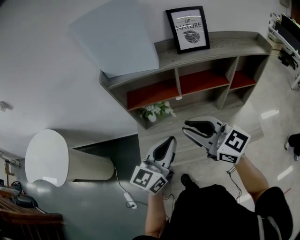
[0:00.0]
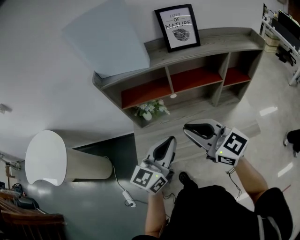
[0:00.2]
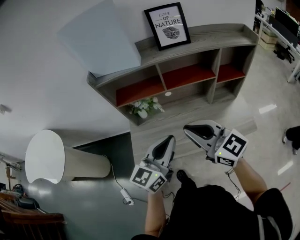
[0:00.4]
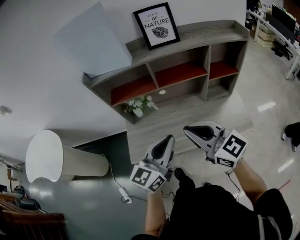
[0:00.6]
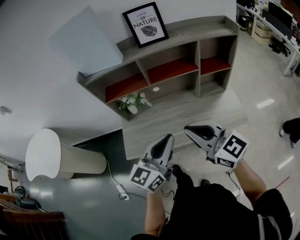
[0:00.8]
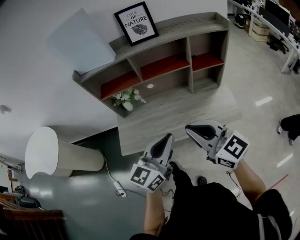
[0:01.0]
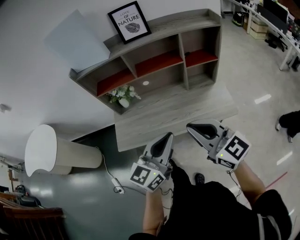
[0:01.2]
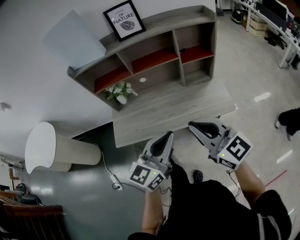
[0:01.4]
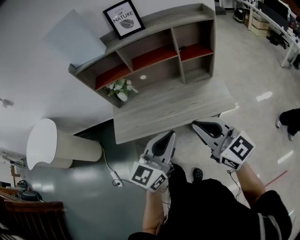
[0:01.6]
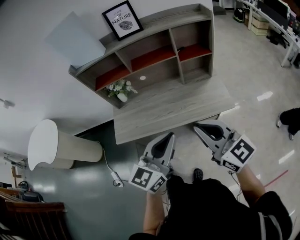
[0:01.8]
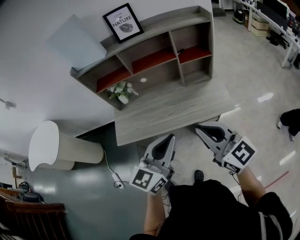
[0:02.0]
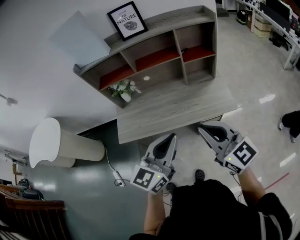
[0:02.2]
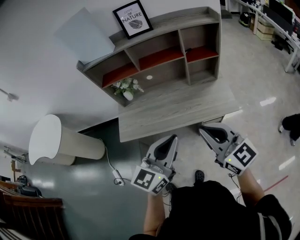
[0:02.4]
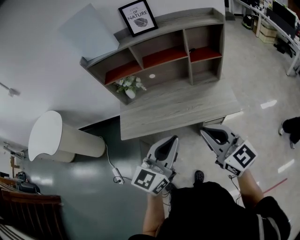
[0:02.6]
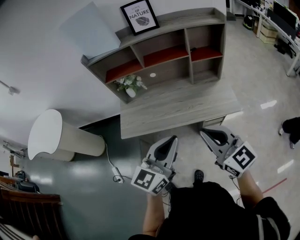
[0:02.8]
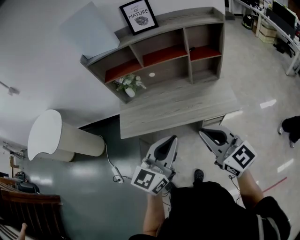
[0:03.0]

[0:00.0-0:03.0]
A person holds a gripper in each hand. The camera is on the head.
0.0 to 1.6 s: Both grippers travel together to the right and backward, about 35 cm.
1.6 to 3.0 s: The left gripper shifts by roughly 5 cm.

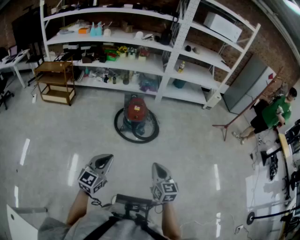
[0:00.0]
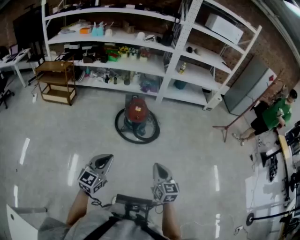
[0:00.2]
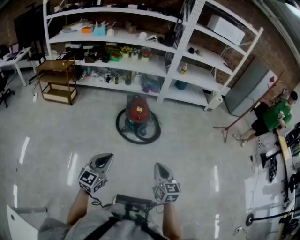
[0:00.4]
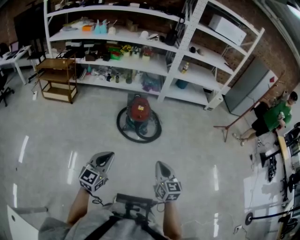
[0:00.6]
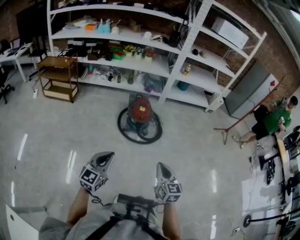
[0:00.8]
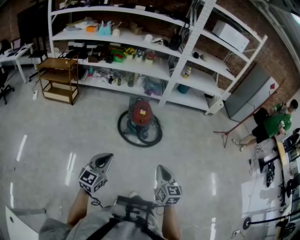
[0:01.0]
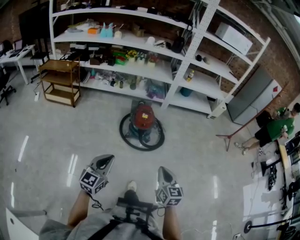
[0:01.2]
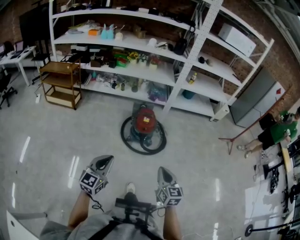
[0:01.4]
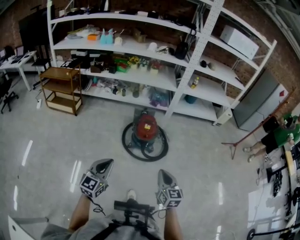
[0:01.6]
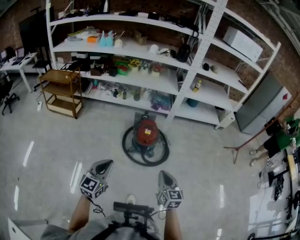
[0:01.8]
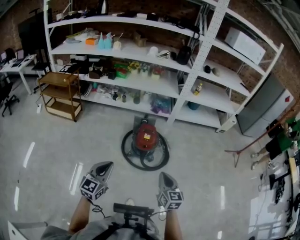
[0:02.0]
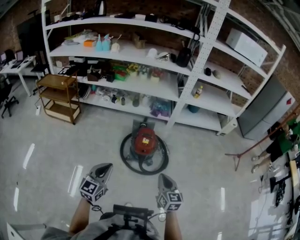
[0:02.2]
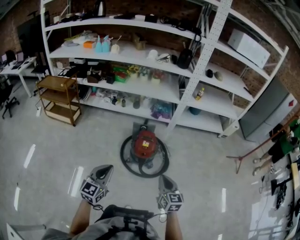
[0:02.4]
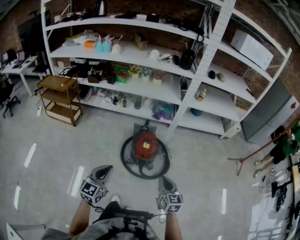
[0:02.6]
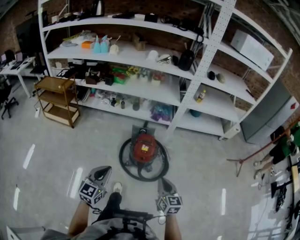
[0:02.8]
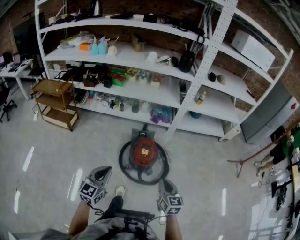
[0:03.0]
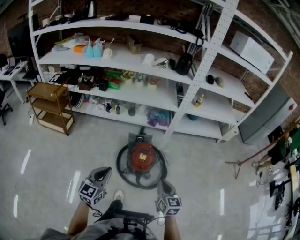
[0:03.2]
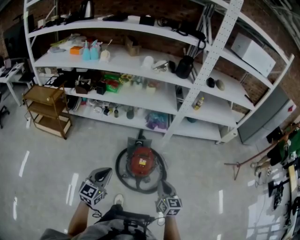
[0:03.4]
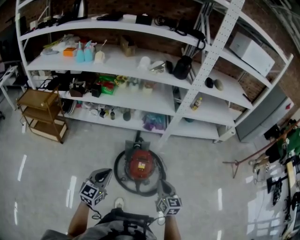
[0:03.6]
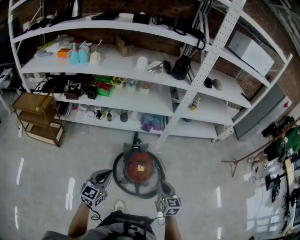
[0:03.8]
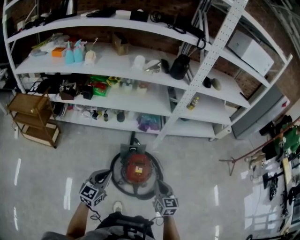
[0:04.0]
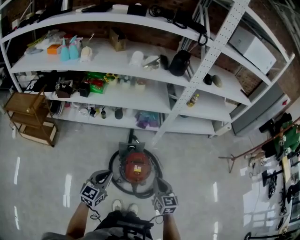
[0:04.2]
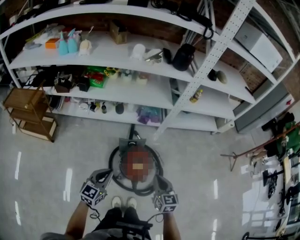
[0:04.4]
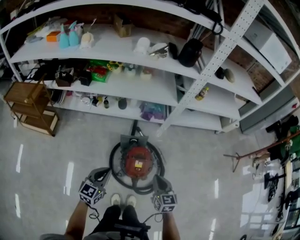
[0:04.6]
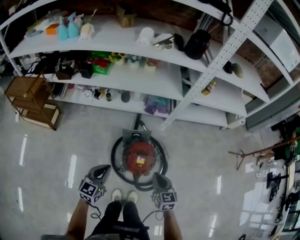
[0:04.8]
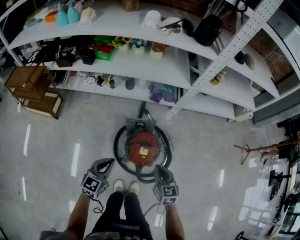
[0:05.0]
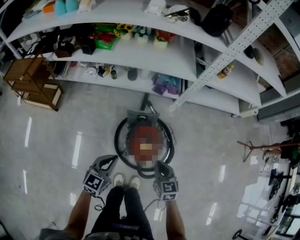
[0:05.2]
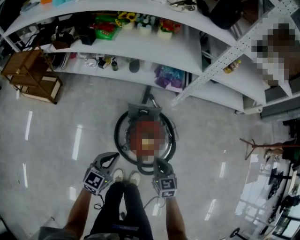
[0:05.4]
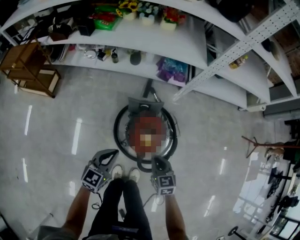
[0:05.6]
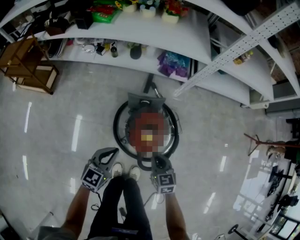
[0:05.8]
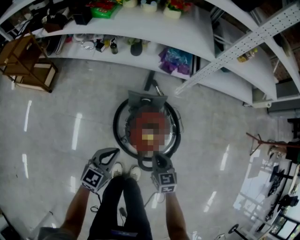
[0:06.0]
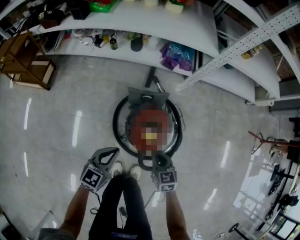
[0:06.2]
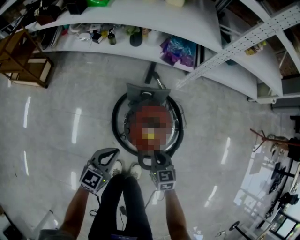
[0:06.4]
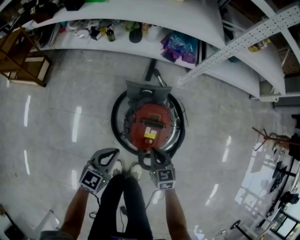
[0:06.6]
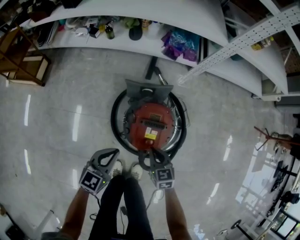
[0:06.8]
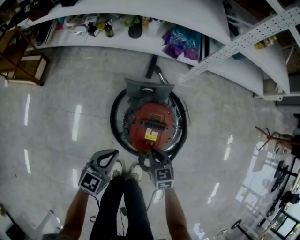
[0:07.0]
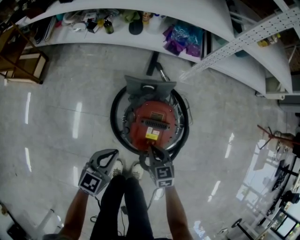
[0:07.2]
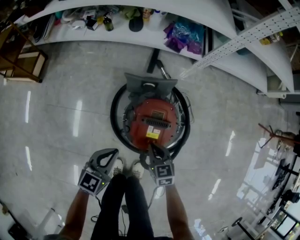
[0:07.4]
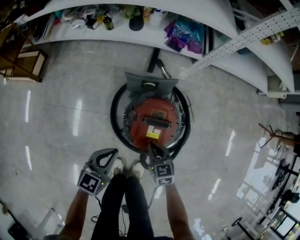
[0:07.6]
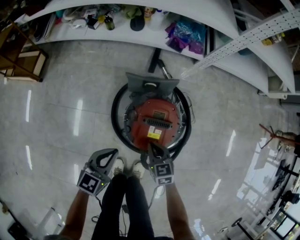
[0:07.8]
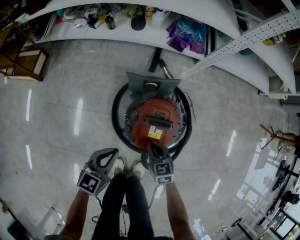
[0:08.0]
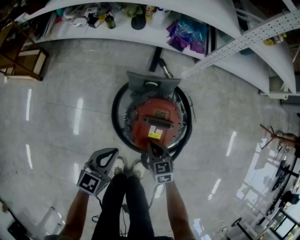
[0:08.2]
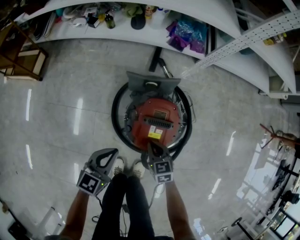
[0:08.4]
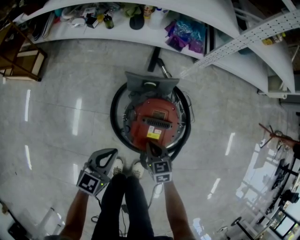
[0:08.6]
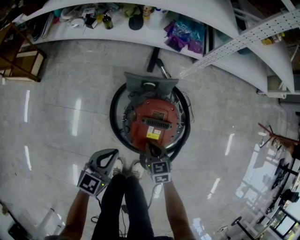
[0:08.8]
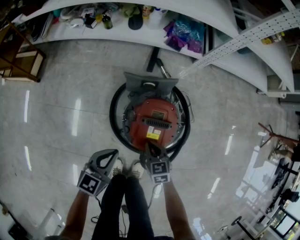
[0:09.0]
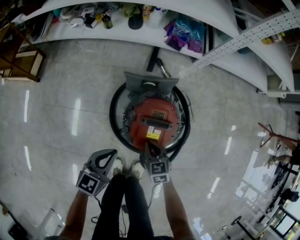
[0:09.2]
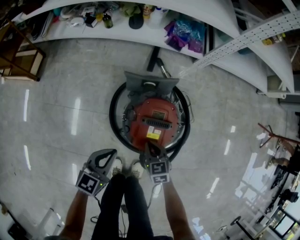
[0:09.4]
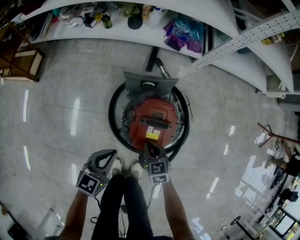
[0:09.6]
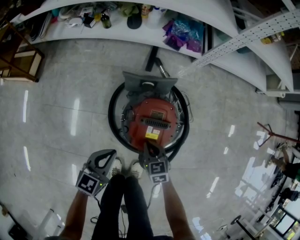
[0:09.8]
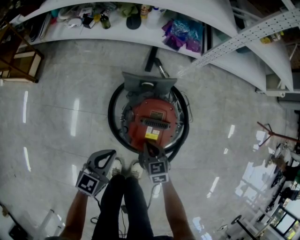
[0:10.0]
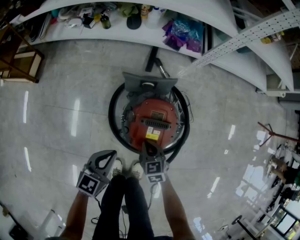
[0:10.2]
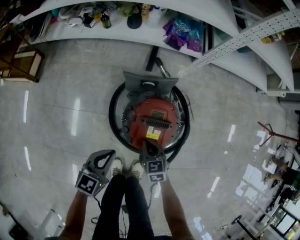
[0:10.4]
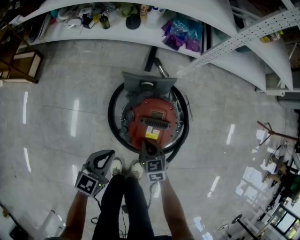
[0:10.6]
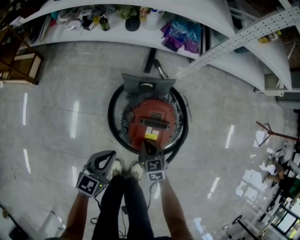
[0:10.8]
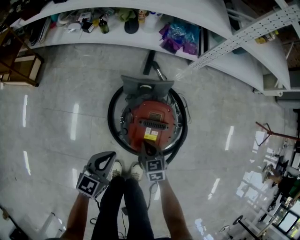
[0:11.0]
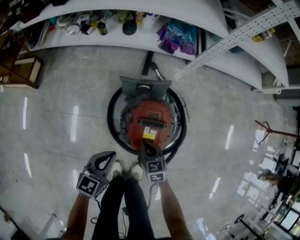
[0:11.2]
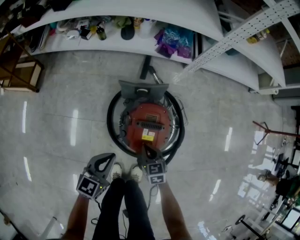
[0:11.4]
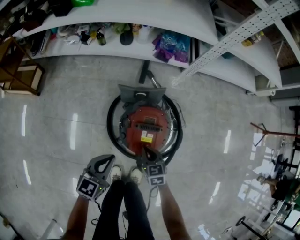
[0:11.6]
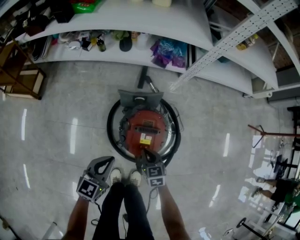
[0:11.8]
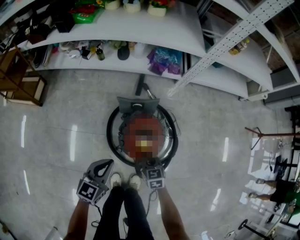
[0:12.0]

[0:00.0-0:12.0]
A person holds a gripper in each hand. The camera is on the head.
0.0 to 1.6 s: Both grippers move forward and to the left, roughly 20 cm.
1.6 to 3.0 s: Both grippers travel together forward, about 30 cm.
3.0 to 4.4 s: Both grippers move forward, roughly 25 cm.
4.4 to 6.0 s: The grippers both shift downward by about 30 cm. The right gripper rotates some 20 degrees.
6.0 to 7.6 s: The grippers both shift downward by roughly 15 cm.
7.6 to 9.0 s: There are only small adjustments of the grippers.
9.0 to 10.4 s: Both grippers stay about where they are.
10.4 to 12.0 s: The two grippers go about 10 cm upward.

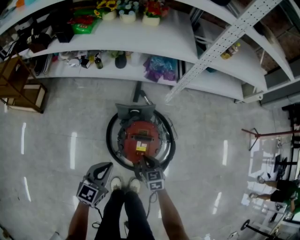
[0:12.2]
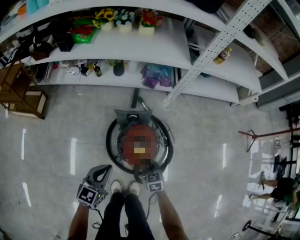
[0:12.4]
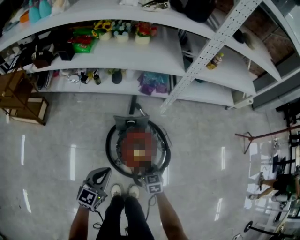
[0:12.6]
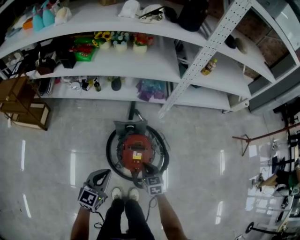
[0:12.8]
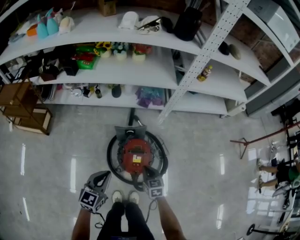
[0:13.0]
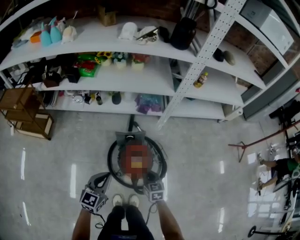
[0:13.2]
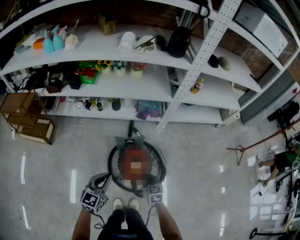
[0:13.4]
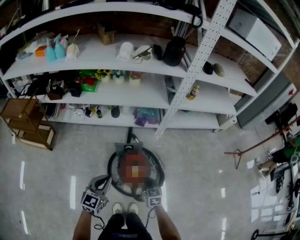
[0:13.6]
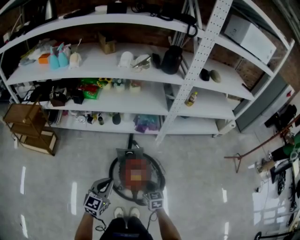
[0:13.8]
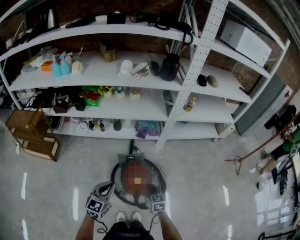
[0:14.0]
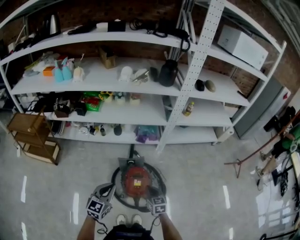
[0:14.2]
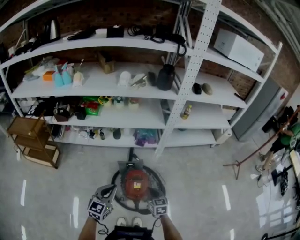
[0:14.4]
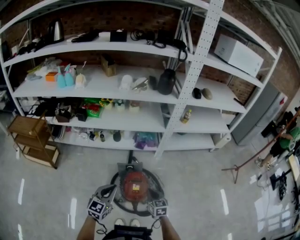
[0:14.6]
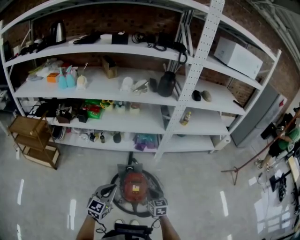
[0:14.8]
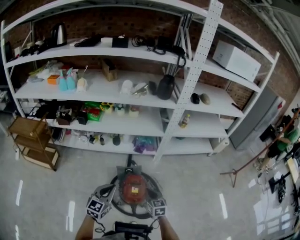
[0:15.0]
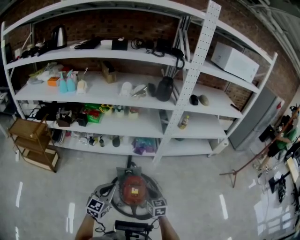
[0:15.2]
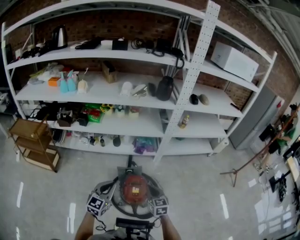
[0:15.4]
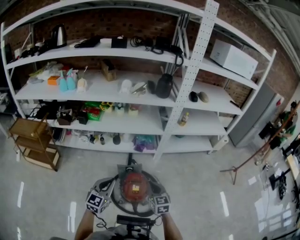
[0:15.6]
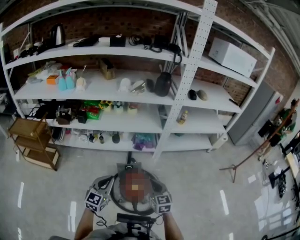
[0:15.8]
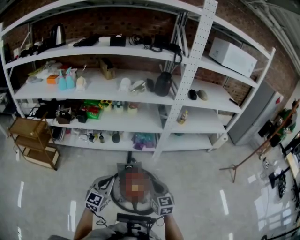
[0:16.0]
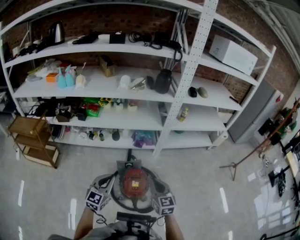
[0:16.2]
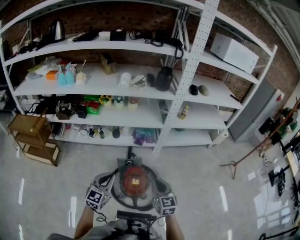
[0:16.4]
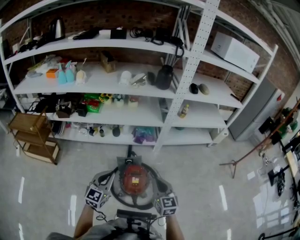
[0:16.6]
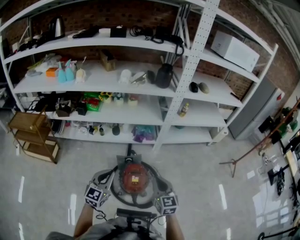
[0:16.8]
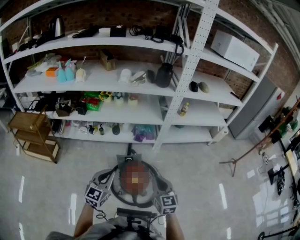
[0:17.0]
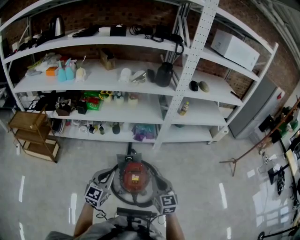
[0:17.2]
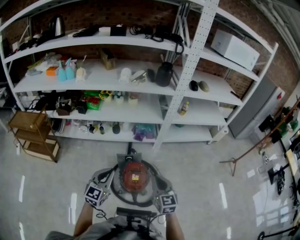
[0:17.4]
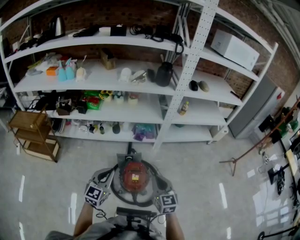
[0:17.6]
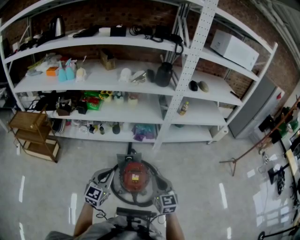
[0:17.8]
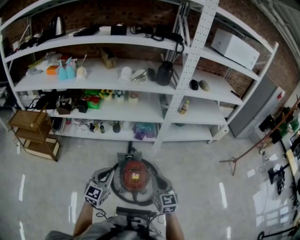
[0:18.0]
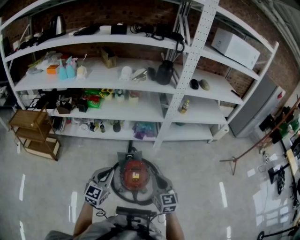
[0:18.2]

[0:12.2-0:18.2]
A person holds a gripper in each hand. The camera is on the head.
12.2 to 13.8 s: The grippers both shift upward by roughly 25 cm.
13.8 to 15.2 s: Both grippers travel together upward, roughly 10 cm.
15.2 to 16.6 s: The right gripper travels upward by roughly 15 cm.
16.6 to 18.2 s: The grippers stay close to where they were, moving slightly.

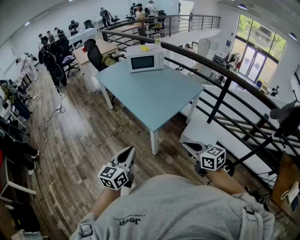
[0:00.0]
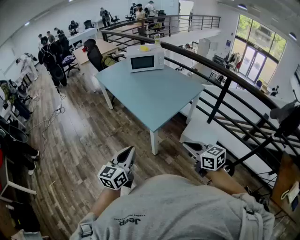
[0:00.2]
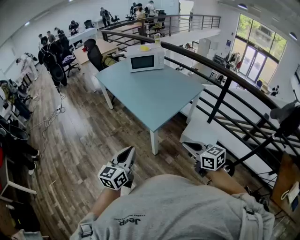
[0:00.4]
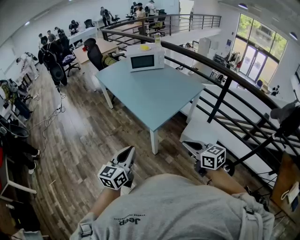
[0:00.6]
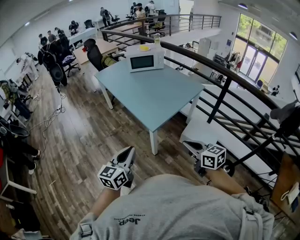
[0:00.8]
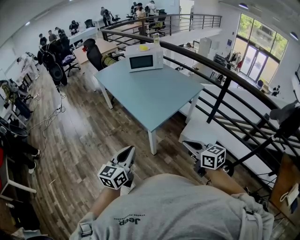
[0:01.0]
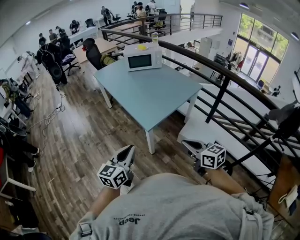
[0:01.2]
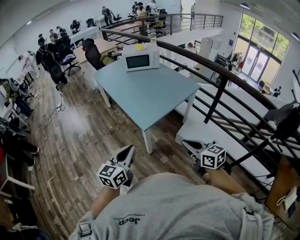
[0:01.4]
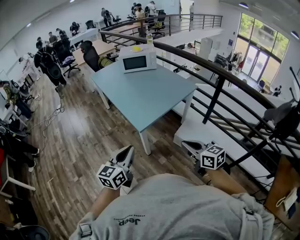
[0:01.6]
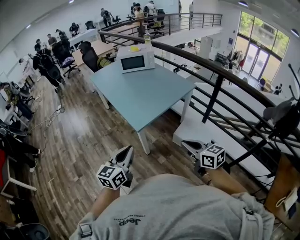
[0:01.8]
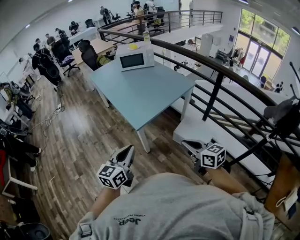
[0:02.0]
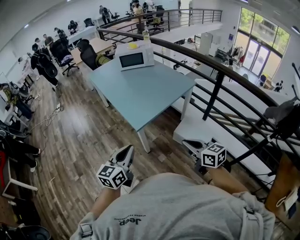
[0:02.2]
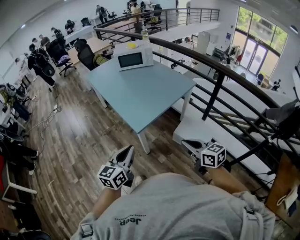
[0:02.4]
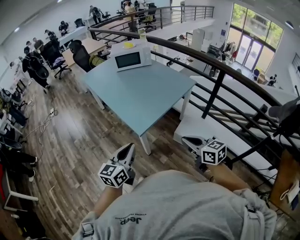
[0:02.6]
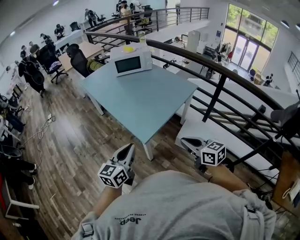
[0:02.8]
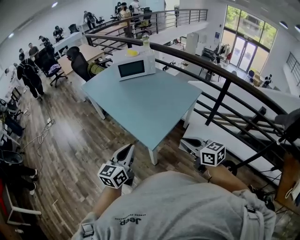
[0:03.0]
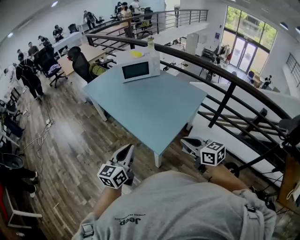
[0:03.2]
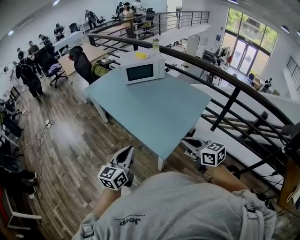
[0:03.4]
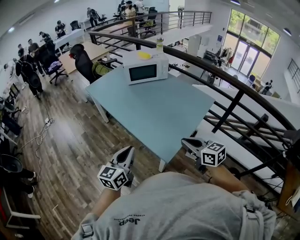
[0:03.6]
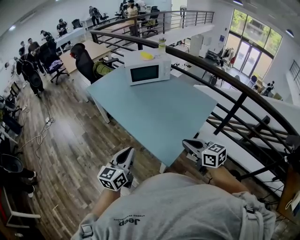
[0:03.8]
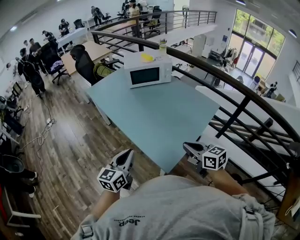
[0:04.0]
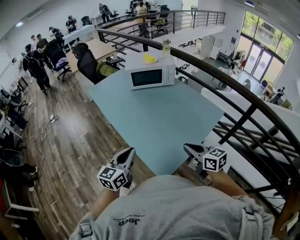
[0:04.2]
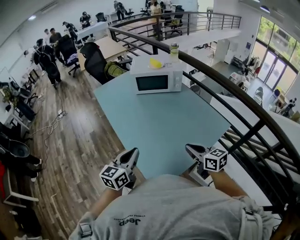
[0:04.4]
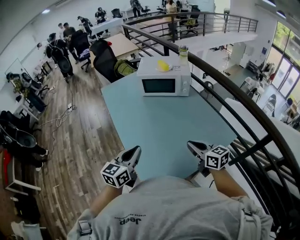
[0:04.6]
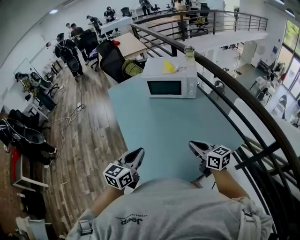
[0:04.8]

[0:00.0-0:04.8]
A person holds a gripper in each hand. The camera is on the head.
0.0 to 1.6 s: Both grippers travel together to the right, about 10 cm.
1.6 to 3.2 s: The two grippers go approximately 25 cm forward and to the left.
3.2 to 4.8 s: The left gripper is displaced forward and to the right by some 30 cm. The right gripper goes approximately 40 cm forward.
